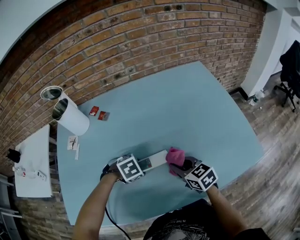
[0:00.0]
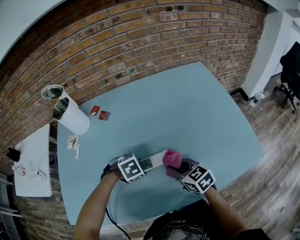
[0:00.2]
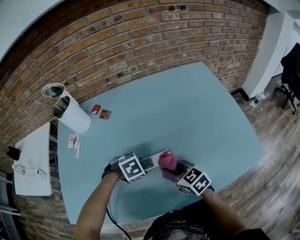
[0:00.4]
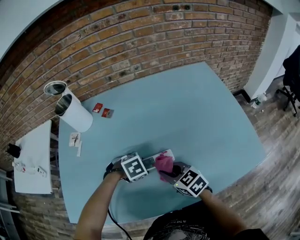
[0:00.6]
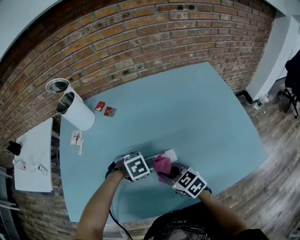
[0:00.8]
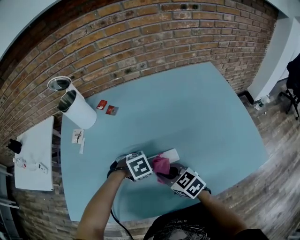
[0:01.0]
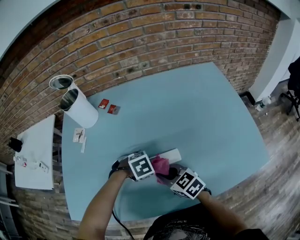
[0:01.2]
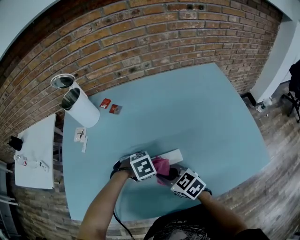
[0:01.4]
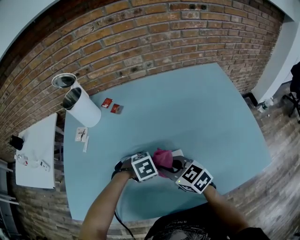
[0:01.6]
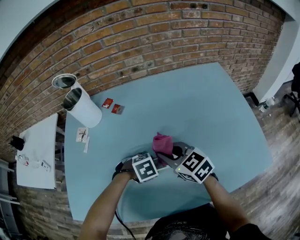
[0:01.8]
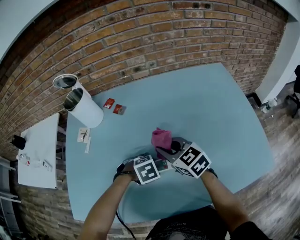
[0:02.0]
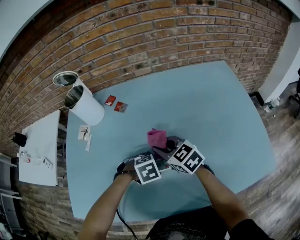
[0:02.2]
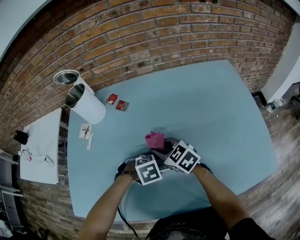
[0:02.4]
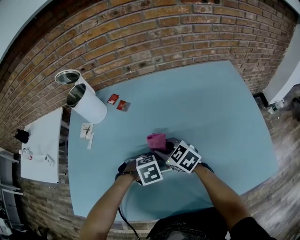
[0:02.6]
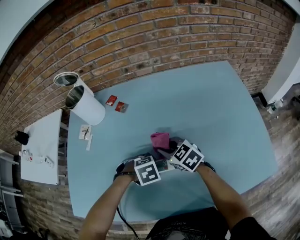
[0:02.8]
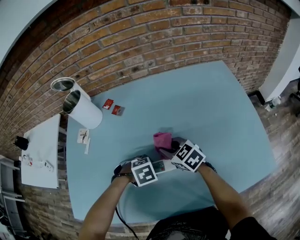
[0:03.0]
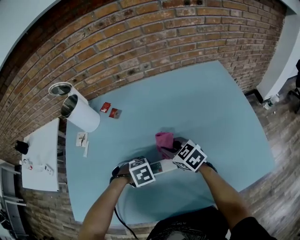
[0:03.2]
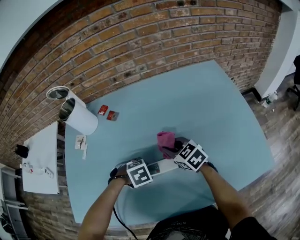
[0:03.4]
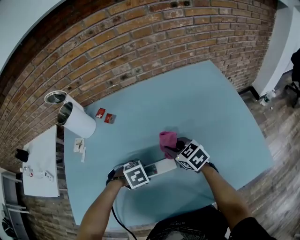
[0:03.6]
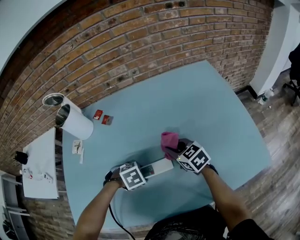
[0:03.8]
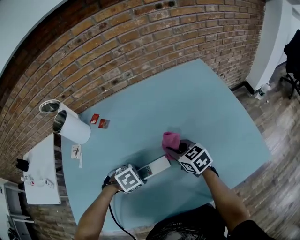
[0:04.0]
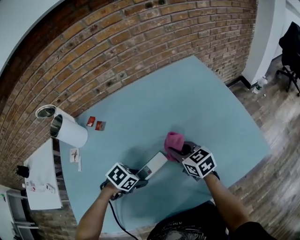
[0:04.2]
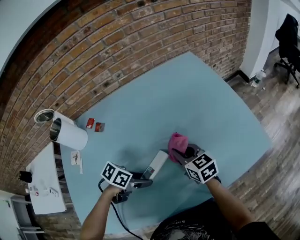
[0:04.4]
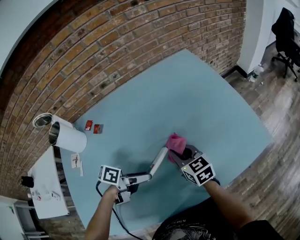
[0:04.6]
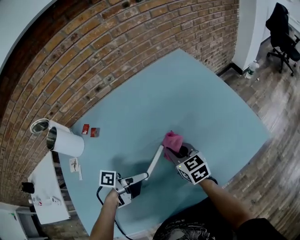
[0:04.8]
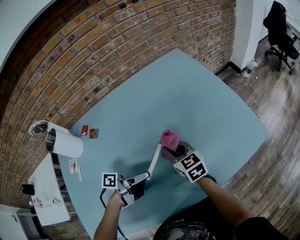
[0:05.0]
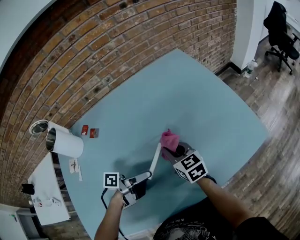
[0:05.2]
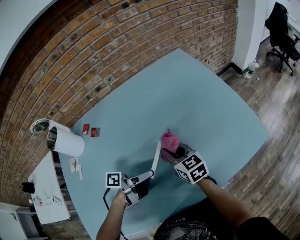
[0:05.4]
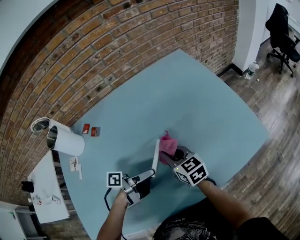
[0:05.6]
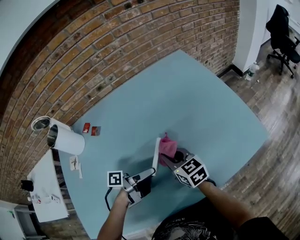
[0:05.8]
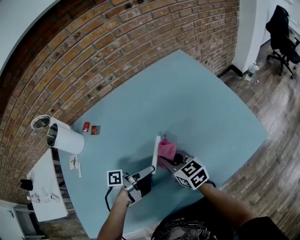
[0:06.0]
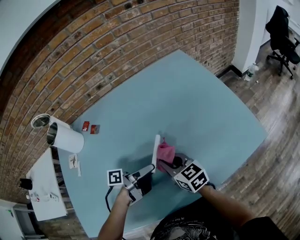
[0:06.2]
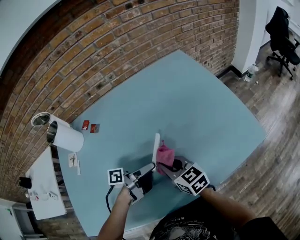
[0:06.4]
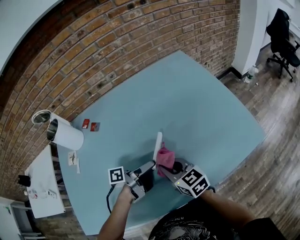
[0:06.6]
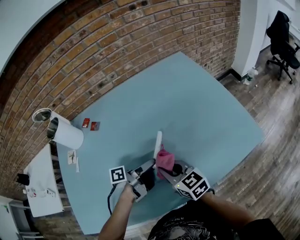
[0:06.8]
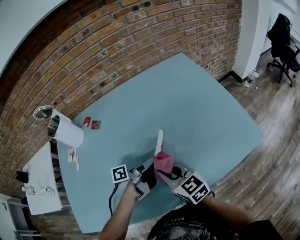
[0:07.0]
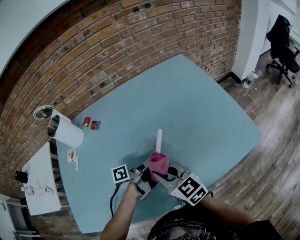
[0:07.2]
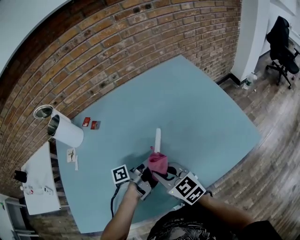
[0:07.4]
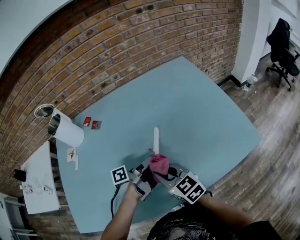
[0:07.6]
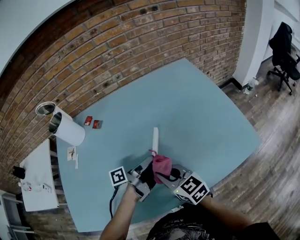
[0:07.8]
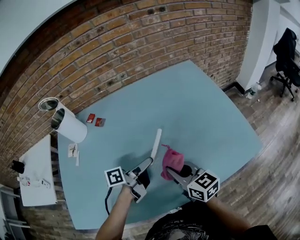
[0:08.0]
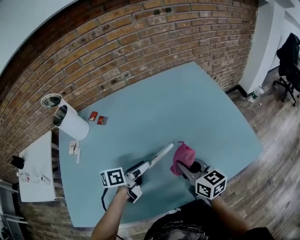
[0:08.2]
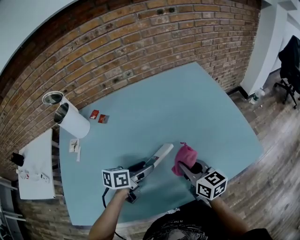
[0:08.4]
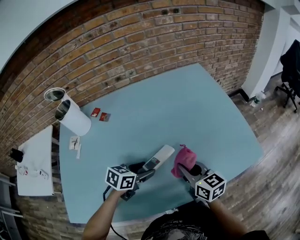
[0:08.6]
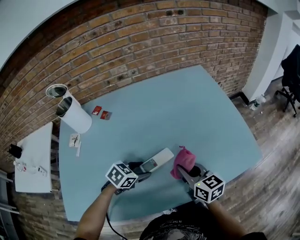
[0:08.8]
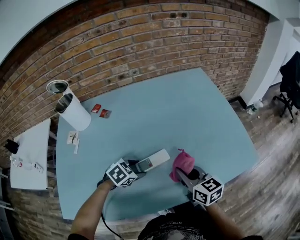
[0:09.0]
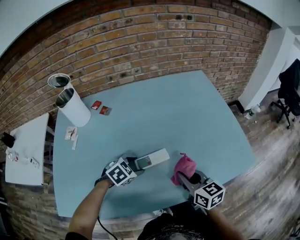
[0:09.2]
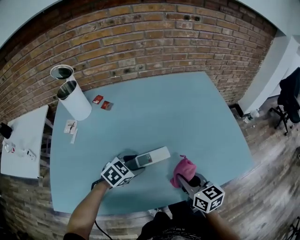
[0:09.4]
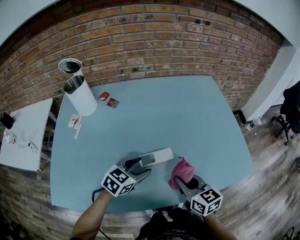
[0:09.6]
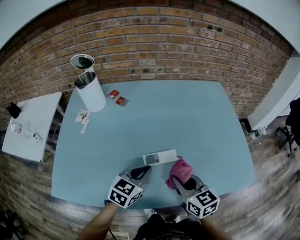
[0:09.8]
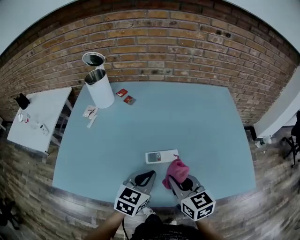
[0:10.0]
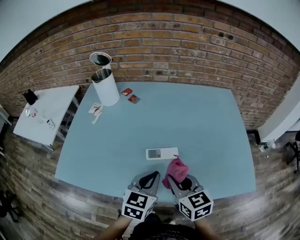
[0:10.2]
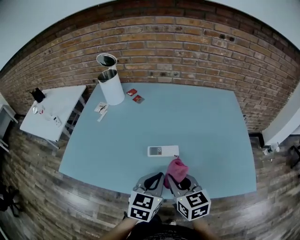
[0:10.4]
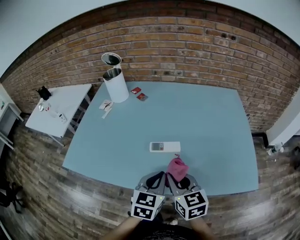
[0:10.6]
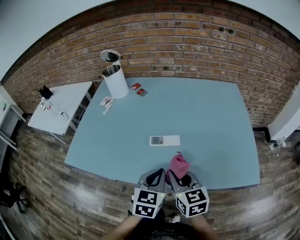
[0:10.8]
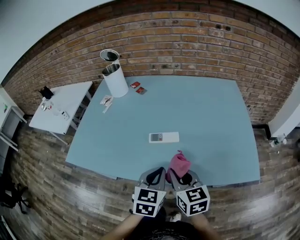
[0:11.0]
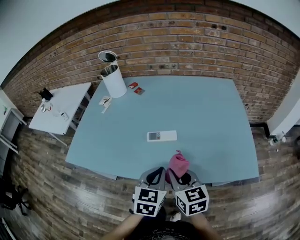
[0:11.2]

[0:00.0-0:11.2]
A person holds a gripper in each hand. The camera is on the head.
0:00.0 to 0:01.6: The right gripper changes place by approximately 10 cm.
0:01.6 to 0:03.2: The right gripper ends up roughly 10 cm from where it was.
0:03.2 to 0:04.8: The left gripper goes some 5 cm upward, and angles its fingers upward, by approximately 70 degrees; the right gripper moves roughly 10 cm, and swivels about 40 degrees.
0:04.8 to 0:06.4: The right gripper moves backward, some 10 cm.
0:06.4 to 0:08.0: The right gripper moves approximately 5 cm.
0:08.0 to 0:09.6: The left gripper moves backward, about 5 cm, travels downward and back again, roughly 10 cm each way, and twists some 70 degrees clockwise, seen from behind.
0:09.6 to 0:11.2: The right gripper changes place by some 10 cm; the left gripper ends up about 20 cm from where it was, swivels about 40 degrees, and closes up.

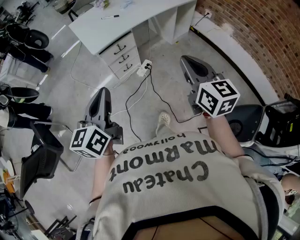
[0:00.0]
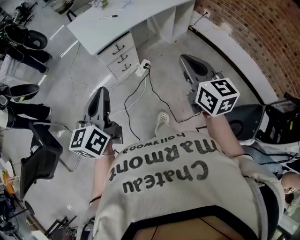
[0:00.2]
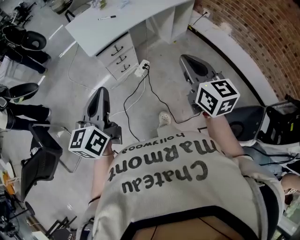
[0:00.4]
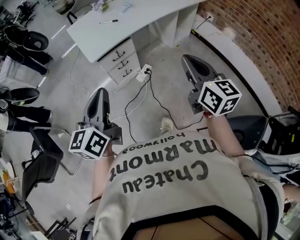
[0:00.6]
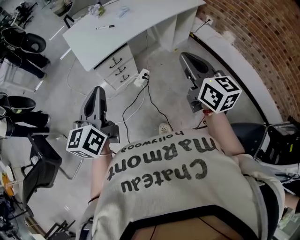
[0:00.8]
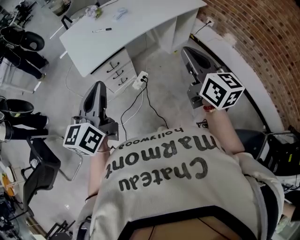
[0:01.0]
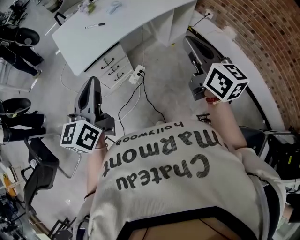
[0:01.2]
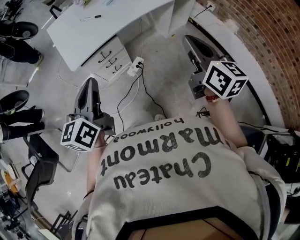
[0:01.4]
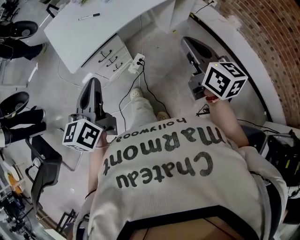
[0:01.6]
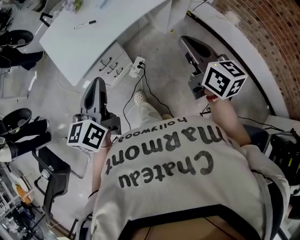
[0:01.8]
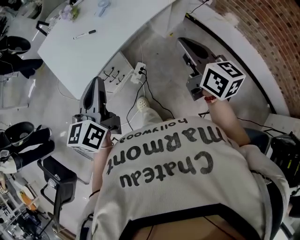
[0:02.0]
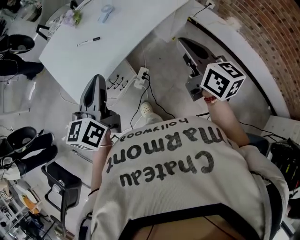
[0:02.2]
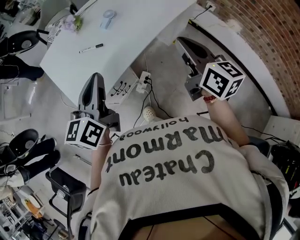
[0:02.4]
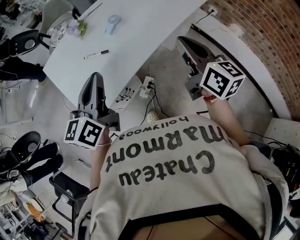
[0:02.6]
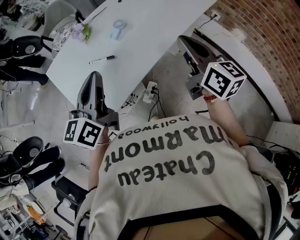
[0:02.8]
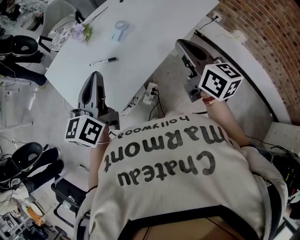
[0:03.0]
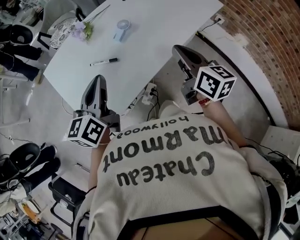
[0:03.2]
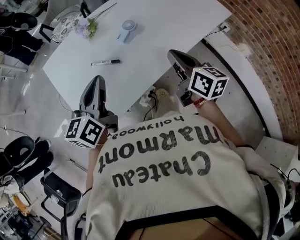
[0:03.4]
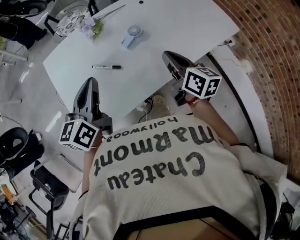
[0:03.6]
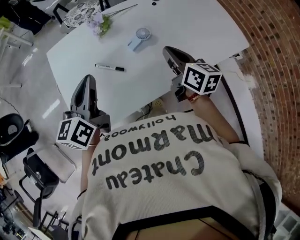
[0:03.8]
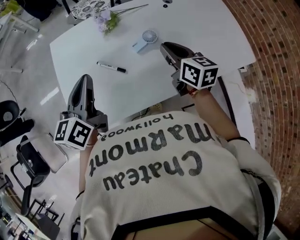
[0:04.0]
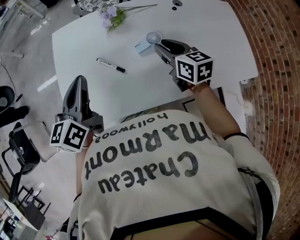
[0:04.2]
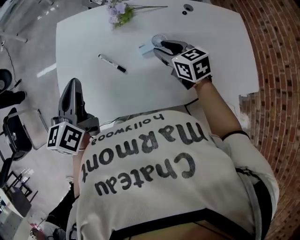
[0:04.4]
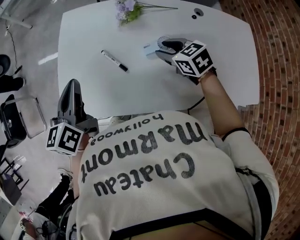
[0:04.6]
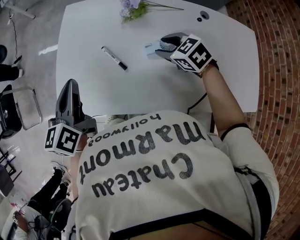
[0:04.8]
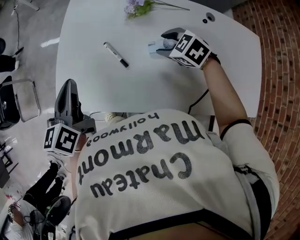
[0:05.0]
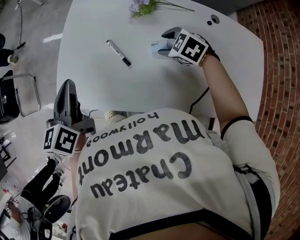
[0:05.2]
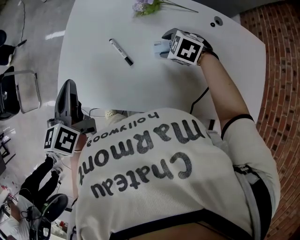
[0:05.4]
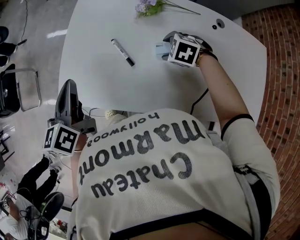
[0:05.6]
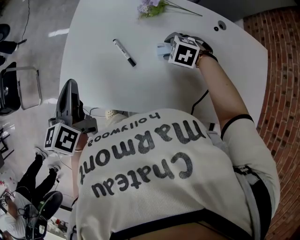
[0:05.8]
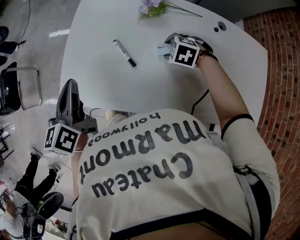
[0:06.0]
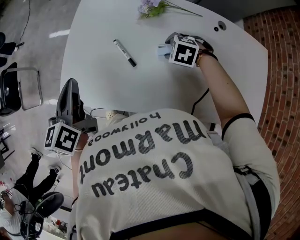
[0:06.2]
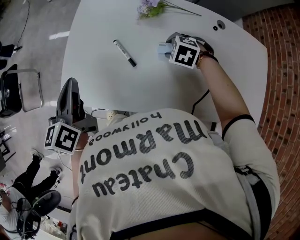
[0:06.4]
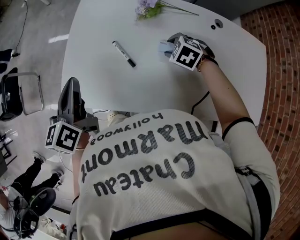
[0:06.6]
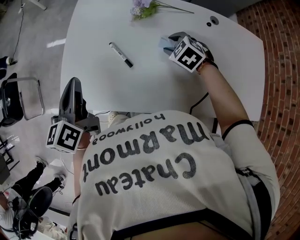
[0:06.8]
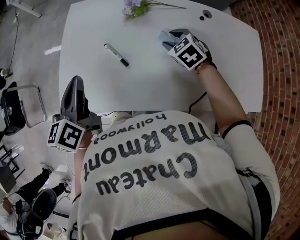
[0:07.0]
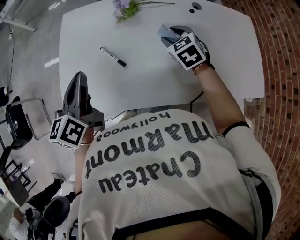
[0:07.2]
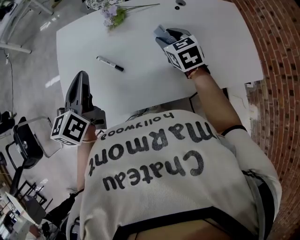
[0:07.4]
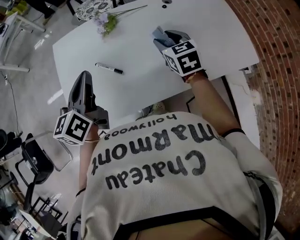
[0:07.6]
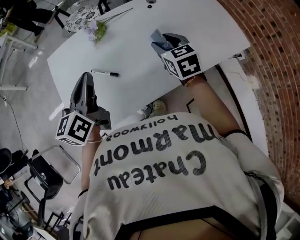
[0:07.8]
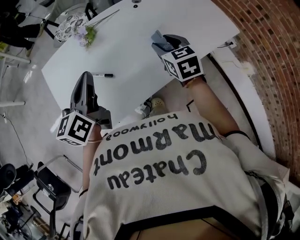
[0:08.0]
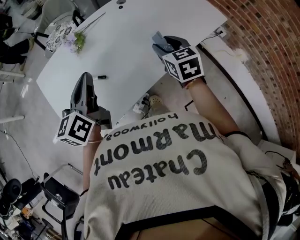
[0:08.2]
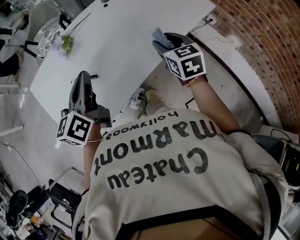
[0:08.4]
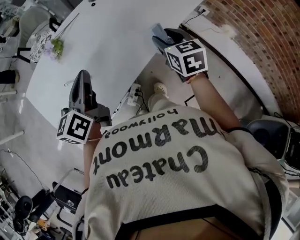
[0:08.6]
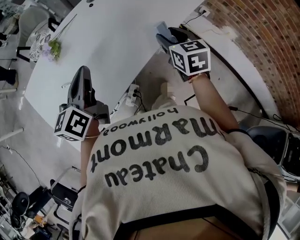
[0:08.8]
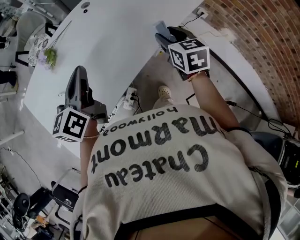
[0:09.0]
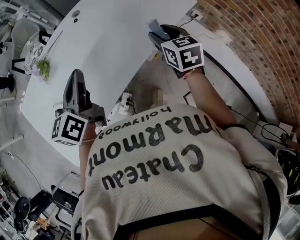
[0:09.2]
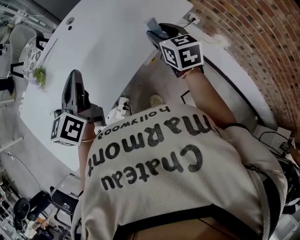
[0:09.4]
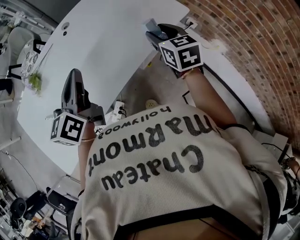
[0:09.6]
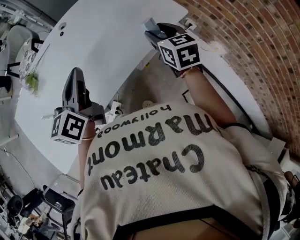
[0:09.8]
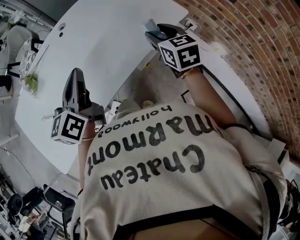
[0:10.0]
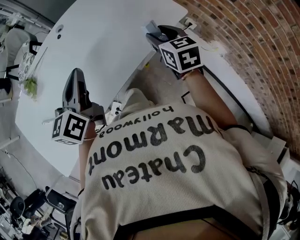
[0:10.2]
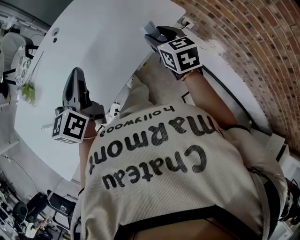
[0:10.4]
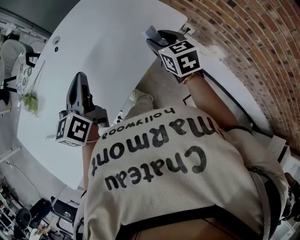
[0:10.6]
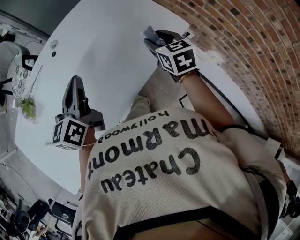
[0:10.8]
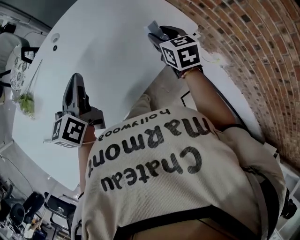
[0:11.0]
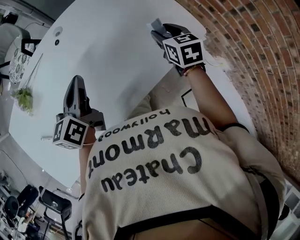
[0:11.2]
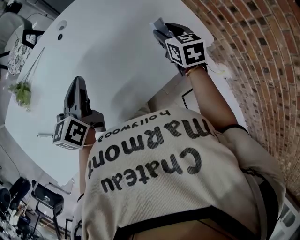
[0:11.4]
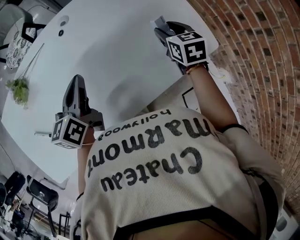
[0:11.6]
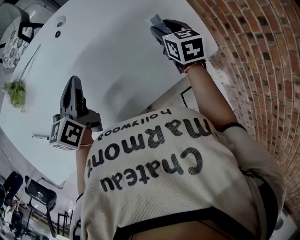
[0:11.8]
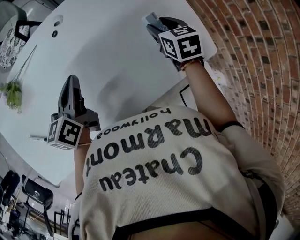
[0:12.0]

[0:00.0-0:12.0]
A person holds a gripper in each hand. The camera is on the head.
0:00.0 to 0:01.6: Both grippers move forward, about 25 cm.
0:01.6 to 0:03.0: The right gripper moves forward and to the left, approximately 30 cm. Meanwhile the left gripper shifts approximately 35 cm forward.
0:03.0 to 0:04.4: The left gripper ends up some 10 cm from where it was, and swivels some 40 degrees; the right gripper ends up about 35 cm from where it was, turns by about 60 degrees, and opens its fingers.
0:04.4 to 0:06.0: The left gripper changes place by approximately 5 cm, and changes its angle by some 20 degrees. Meanwhile the right gripper moves downward, approximately 10 cm, and points its fingers some 40 degrees further downward.
0:06.0 to 0:07.6: The right gripper moves upward, about 15 cm, and tips its fingers upward by roughly 40 degrees; the left gripper ends up about 15 cm from where it was, and changes its angle by roughly 30 degrees.
0:07.6 to 0:09.0: The left gripper changes place by about 20 cm, and changes its angle by about 30 degrees. The right gripper ends up about 30 cm from where it was, and swivels about 40 degrees.
0:09.0 to 0:10.4: The grippers both shift to the right and forward by some 20 cm.
0:10.4 to 0:12.0: The left gripper is displaced forward, downward and to the left by some 20 cm, and turns by some 20 degrees; the right gripper travels forward by about 25 cm.
